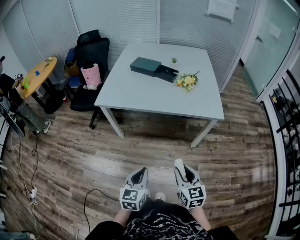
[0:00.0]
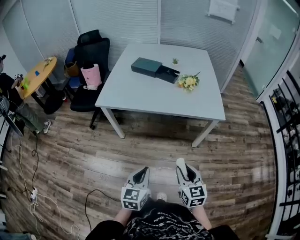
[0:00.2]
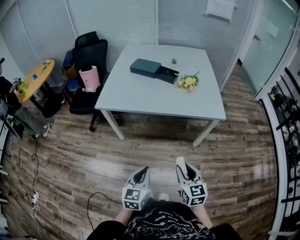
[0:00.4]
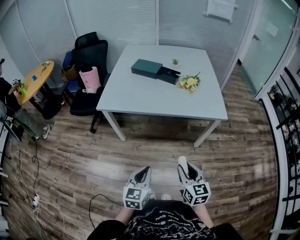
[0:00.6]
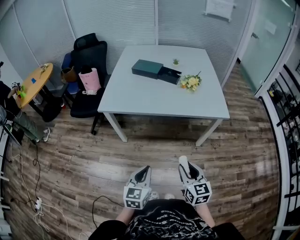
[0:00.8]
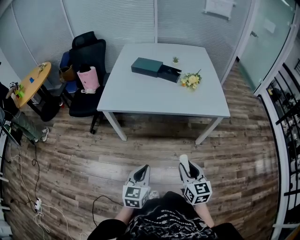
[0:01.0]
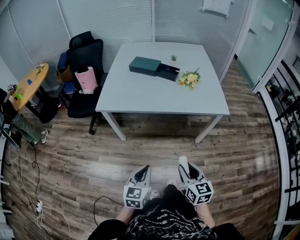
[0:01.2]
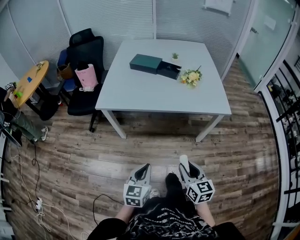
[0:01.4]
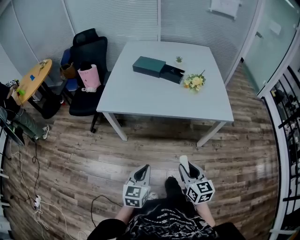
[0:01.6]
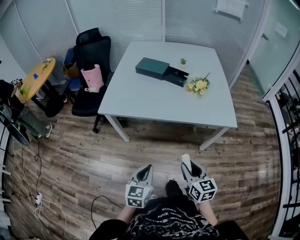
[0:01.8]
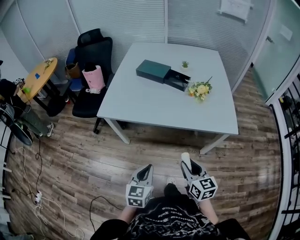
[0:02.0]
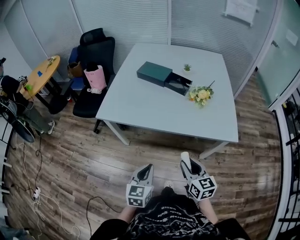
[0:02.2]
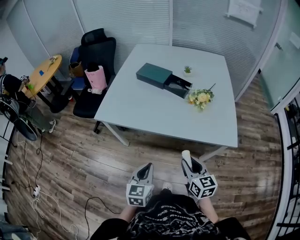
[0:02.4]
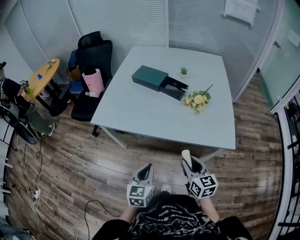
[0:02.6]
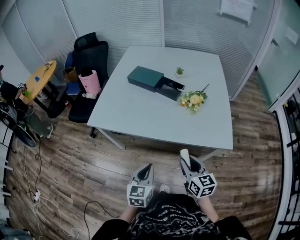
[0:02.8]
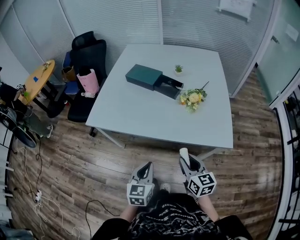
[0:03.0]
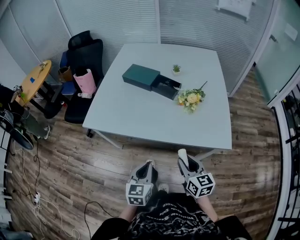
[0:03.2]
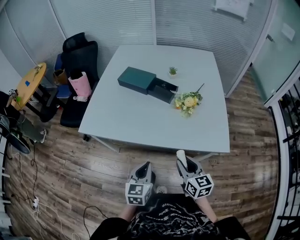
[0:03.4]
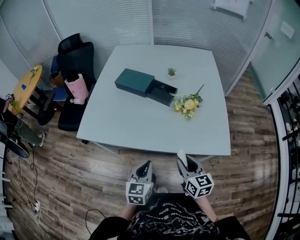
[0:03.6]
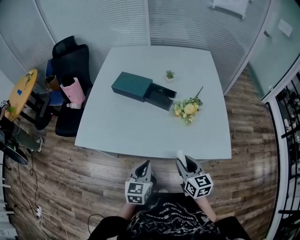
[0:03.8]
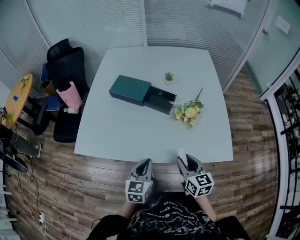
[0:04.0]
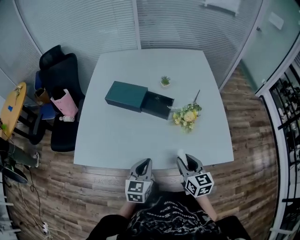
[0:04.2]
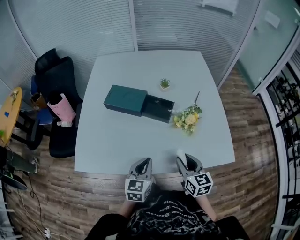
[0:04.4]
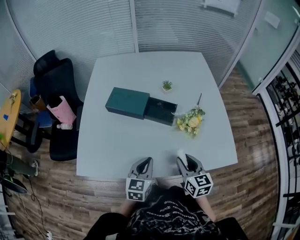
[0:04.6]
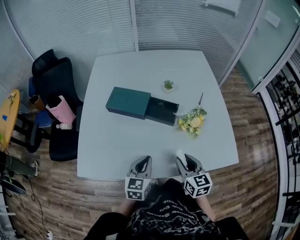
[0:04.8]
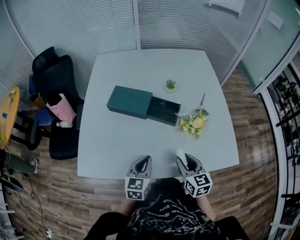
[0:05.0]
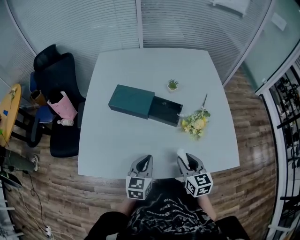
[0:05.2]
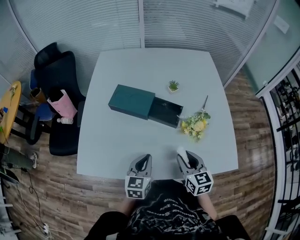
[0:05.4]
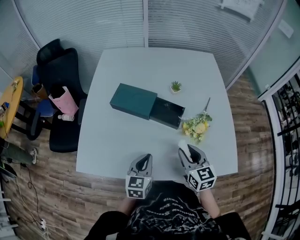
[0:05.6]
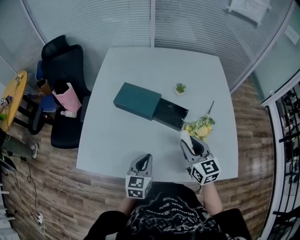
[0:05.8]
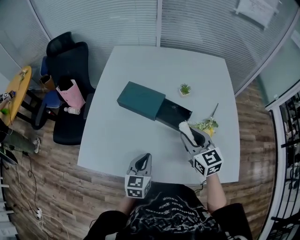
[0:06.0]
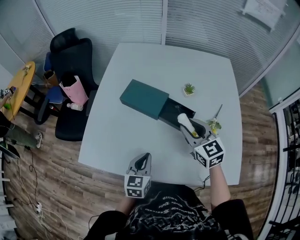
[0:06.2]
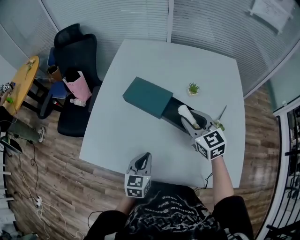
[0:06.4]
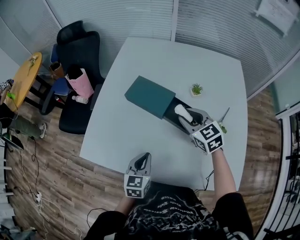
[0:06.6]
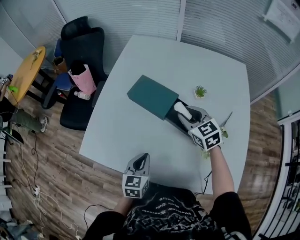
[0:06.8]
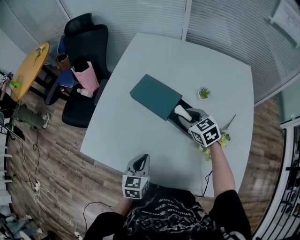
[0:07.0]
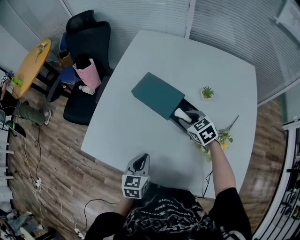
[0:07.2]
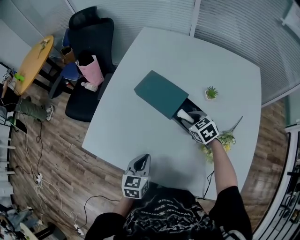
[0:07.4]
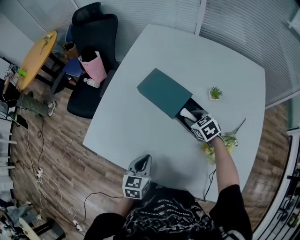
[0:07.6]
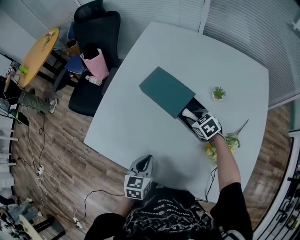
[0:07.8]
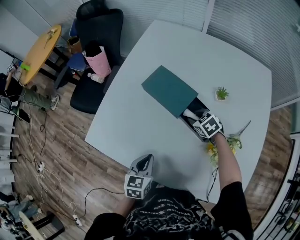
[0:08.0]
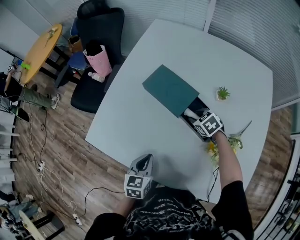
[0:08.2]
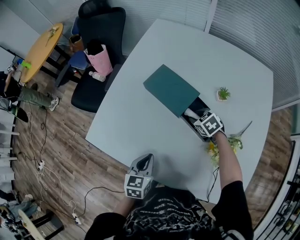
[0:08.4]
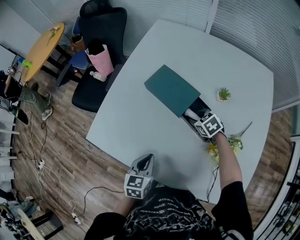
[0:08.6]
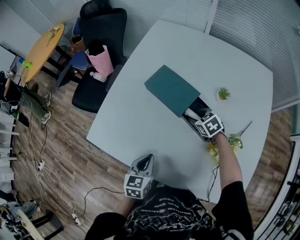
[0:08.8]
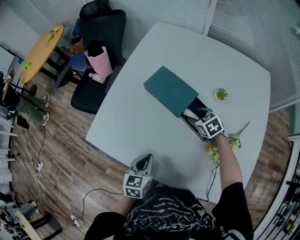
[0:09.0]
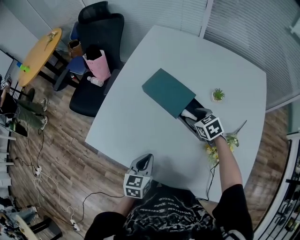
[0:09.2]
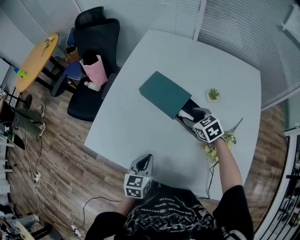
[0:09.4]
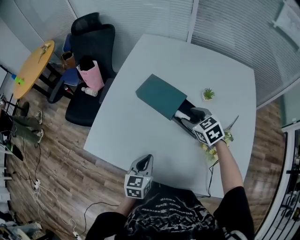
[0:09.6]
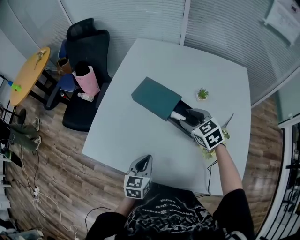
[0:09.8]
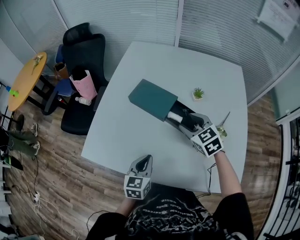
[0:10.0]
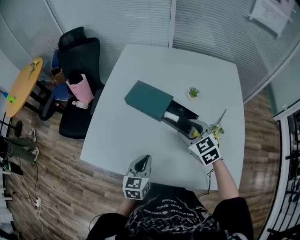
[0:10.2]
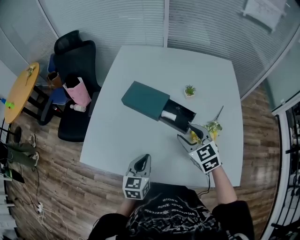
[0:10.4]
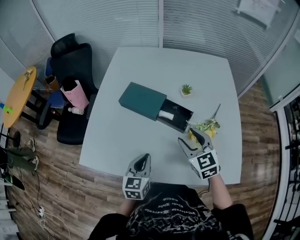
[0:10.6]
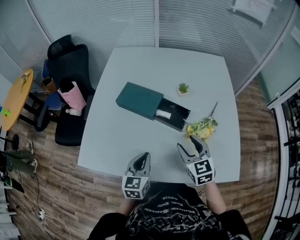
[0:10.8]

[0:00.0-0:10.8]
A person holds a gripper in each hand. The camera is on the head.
0:00.0 to 0:01.6: The grippers both shift forward and to the left by roughly 10 cm.
0:01.6 to 0:03.0: Both grippers travel together forward and to the right, approximately 25 cm.
0:03.0 to 0:04.6: Both grippers travel together forward, about 25 cm.
0:04.6 to 0:06.2: The left gripper travels forward by some 5 cm, while the right gripper heads forward and upward, covering some 20 cm, and changes its angle by approximately 30 degrees.
0:06.2 to 0:07.8: The right gripper travels downward and forward by some 25 cm, and tips its fingers downward by about 30 degrees. The left gripper ends up some 5 cm from where it was.
0:07.8 to 0:09.2: The right gripper opens.
0:09.2 to 0:10.8: The left gripper travels upward by roughly 5 cm; the right gripper moves backward and upward, approximately 25 cm, and turns by about 40 degrees.

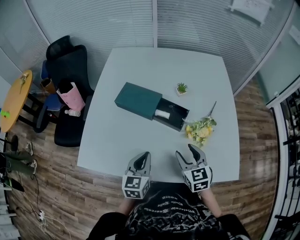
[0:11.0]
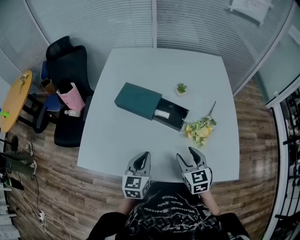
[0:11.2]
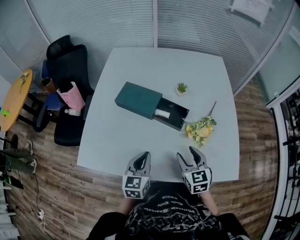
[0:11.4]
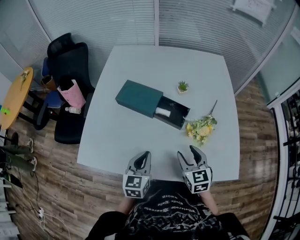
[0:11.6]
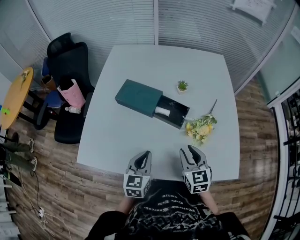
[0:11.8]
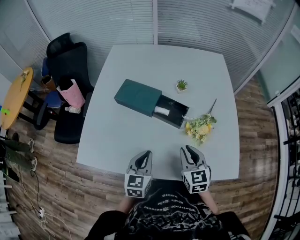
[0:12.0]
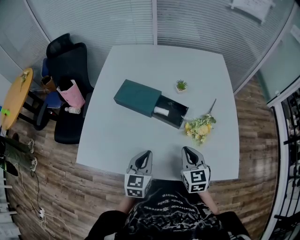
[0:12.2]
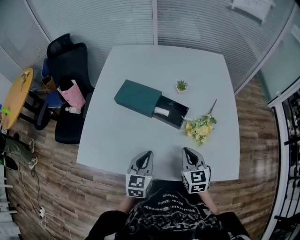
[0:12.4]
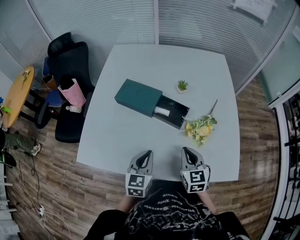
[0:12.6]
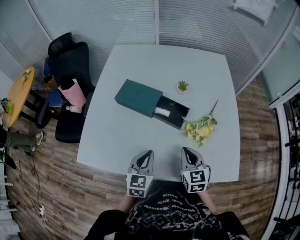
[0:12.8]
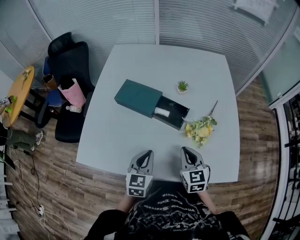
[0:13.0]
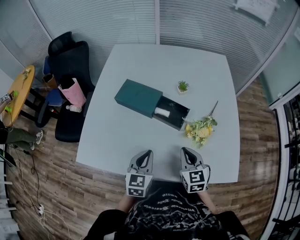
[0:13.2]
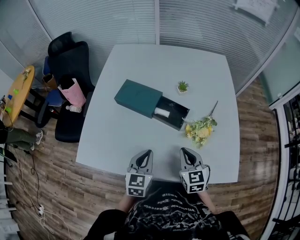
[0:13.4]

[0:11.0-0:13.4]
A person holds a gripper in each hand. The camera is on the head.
0:11.0 to 0:12.2: The right gripper closes its fingers.
0:12.2 to 0:13.4: The grippers make only small movements.

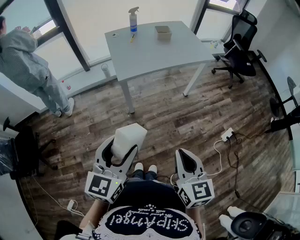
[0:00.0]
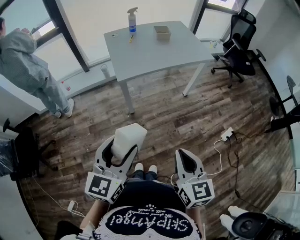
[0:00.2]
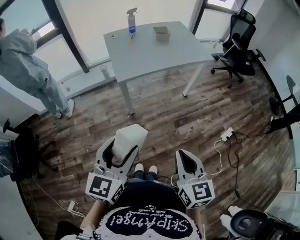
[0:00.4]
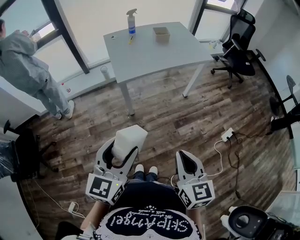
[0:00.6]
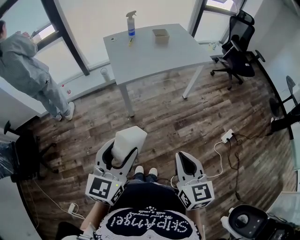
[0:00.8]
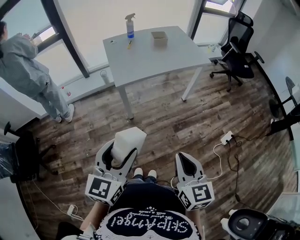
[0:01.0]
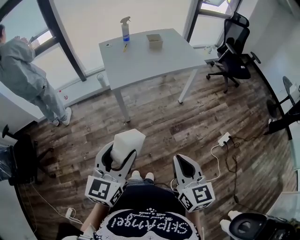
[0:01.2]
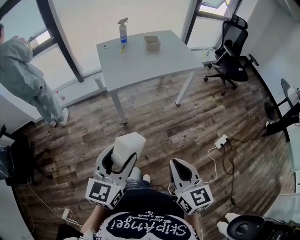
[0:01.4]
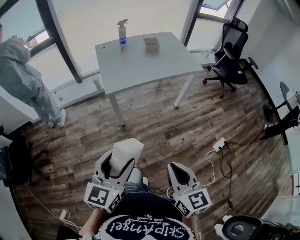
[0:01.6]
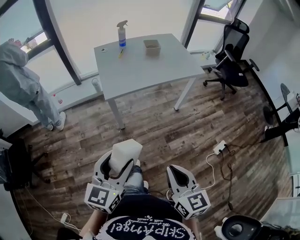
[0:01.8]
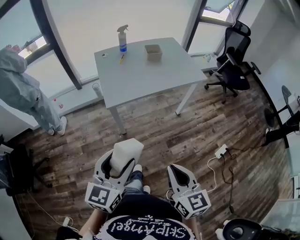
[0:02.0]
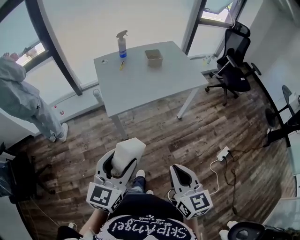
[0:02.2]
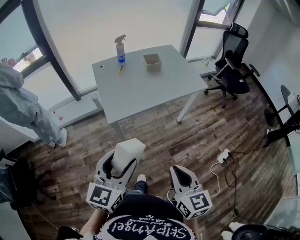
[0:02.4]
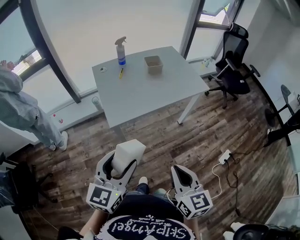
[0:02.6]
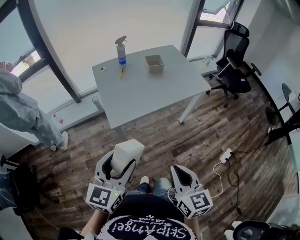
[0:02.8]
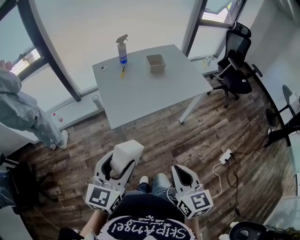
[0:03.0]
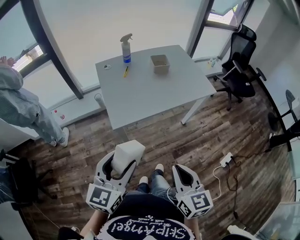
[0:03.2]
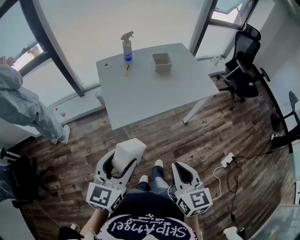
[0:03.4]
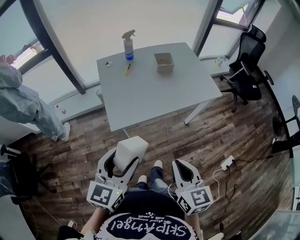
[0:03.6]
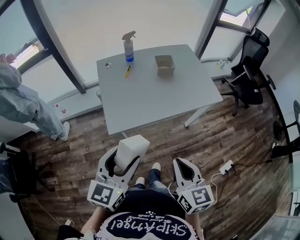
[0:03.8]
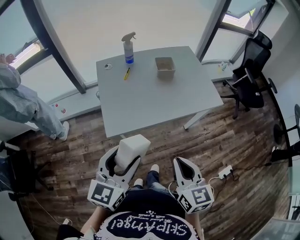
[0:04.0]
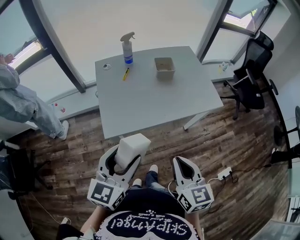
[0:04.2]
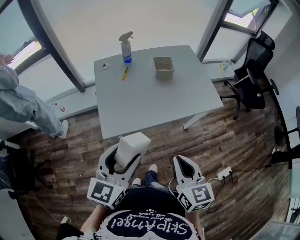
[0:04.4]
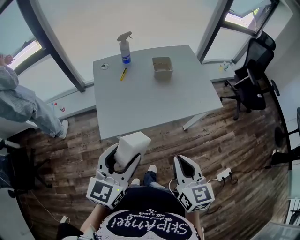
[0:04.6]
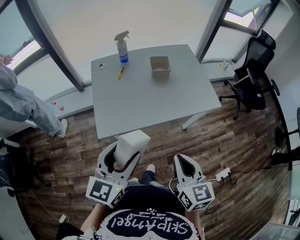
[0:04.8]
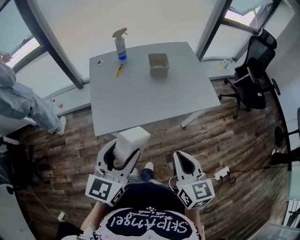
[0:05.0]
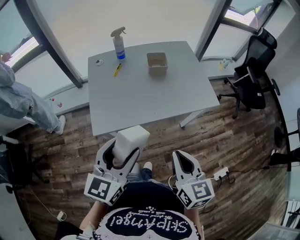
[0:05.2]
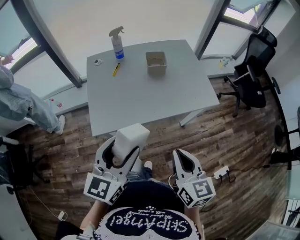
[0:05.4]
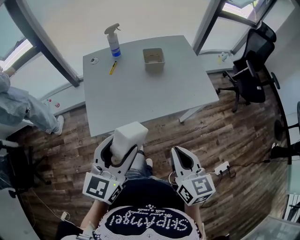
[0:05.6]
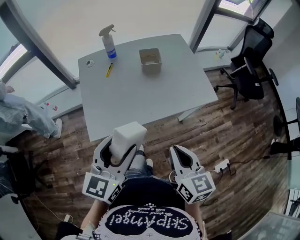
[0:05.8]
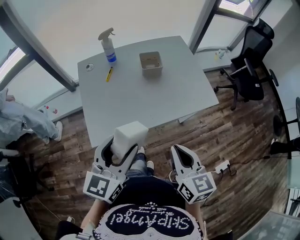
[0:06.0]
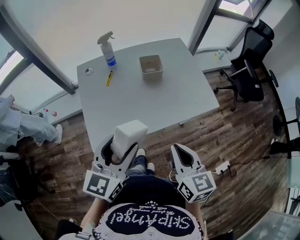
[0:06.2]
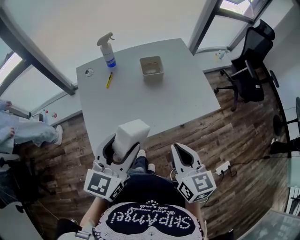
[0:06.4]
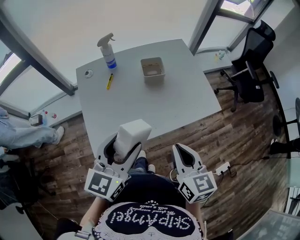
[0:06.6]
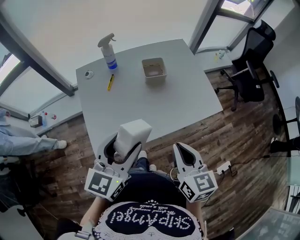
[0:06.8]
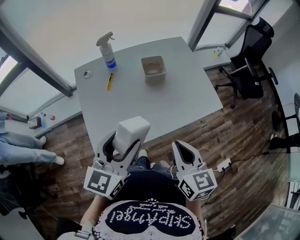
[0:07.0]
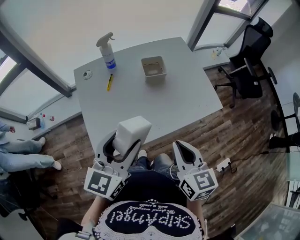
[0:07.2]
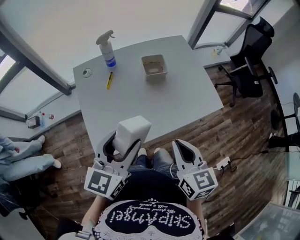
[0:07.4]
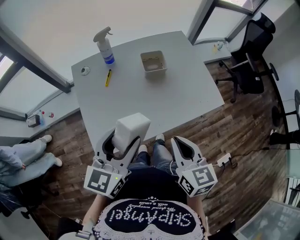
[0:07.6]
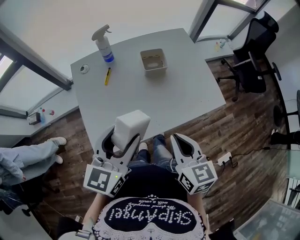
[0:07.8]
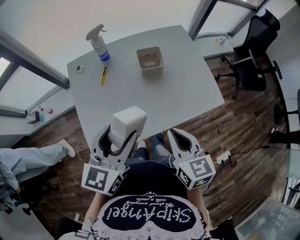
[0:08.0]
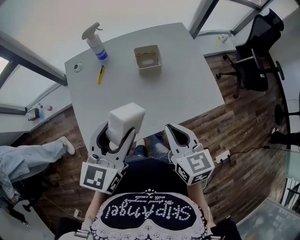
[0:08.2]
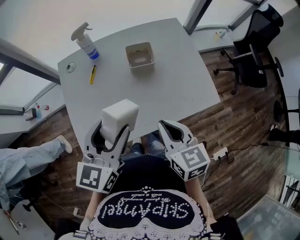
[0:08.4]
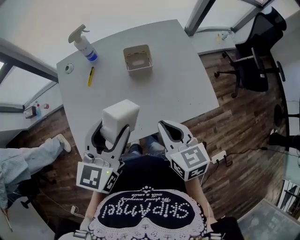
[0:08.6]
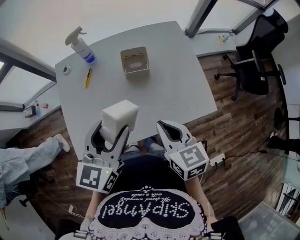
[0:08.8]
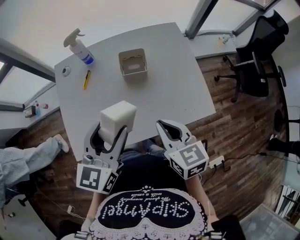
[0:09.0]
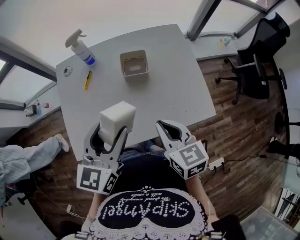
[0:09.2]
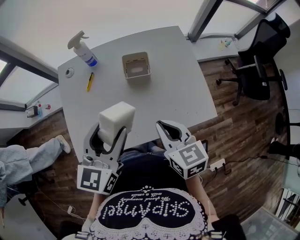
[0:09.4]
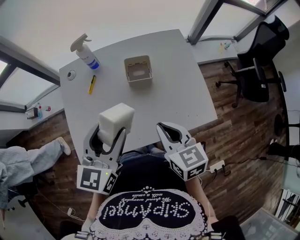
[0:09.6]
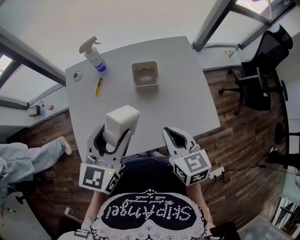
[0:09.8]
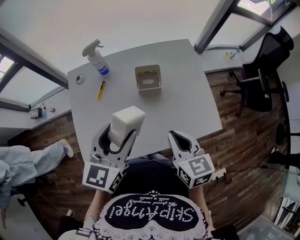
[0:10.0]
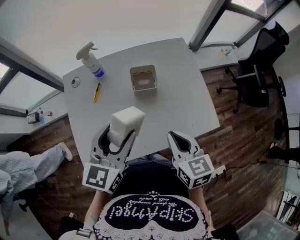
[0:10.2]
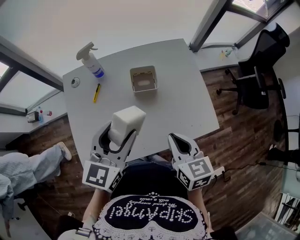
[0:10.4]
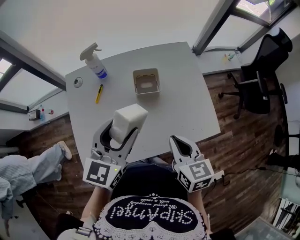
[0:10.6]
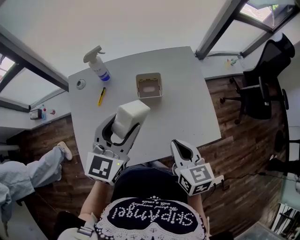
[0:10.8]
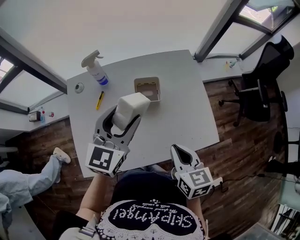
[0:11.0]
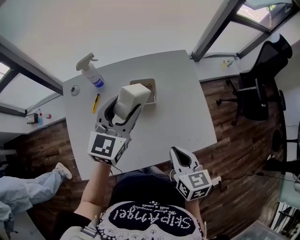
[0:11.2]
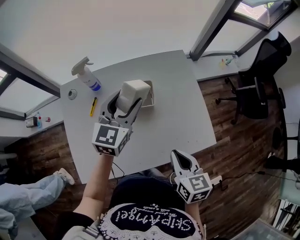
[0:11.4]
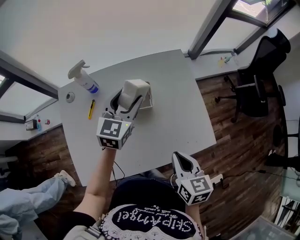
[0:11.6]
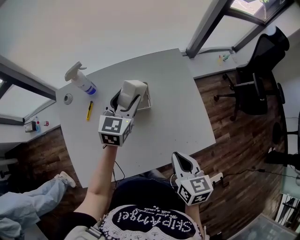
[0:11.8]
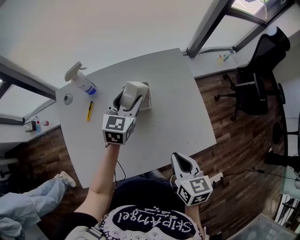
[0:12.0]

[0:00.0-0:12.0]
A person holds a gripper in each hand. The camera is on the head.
0:00.0 to 0:01.6: The left gripper shifts some 5 cm to the right.
0:01.6 to 0:03.0: Both grippers travel together forward, some 20 cm.
0:03.0 to 0:04.4: The right gripper is displaced forward by roughly 15 cm. The left gripper travels forward and to the right by roughly 15 cm.
0:04.4 to 0:06.0: Both grippers move forward, roughly 10 cm.
0:06.0 to 0:07.6: Both grippers travel together forward, roughly 10 cm.
0:07.6 to 0:09.0: The right gripper travels forward and to the right by roughly 15 cm. The left gripper shifts some 10 cm to the right and forward.
0:09.0 to 0:10.4: The grippers stay close to where they were, moving slightly.
0:10.4 to 0:12.0: The left gripper goes some 25 cm forward and downward. The right gripper shifts by some 5 cm.
